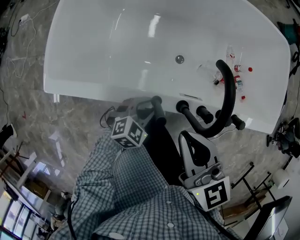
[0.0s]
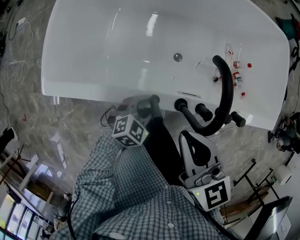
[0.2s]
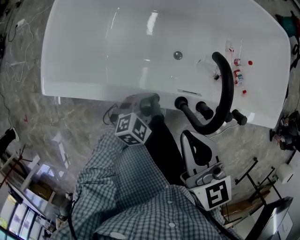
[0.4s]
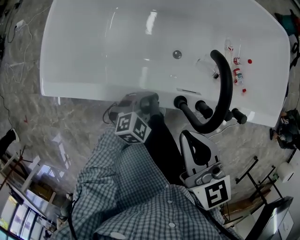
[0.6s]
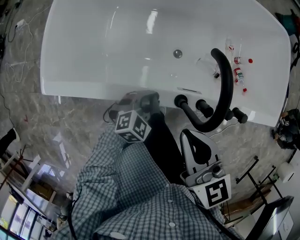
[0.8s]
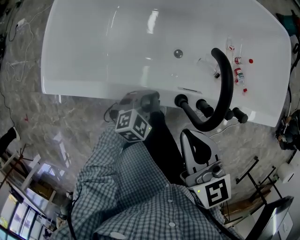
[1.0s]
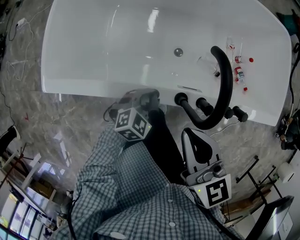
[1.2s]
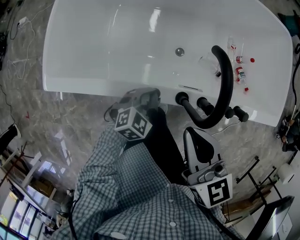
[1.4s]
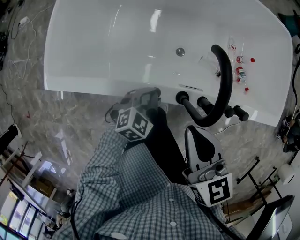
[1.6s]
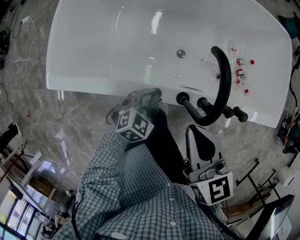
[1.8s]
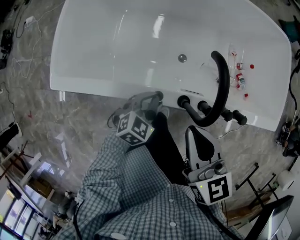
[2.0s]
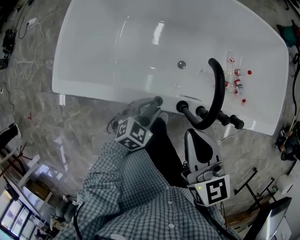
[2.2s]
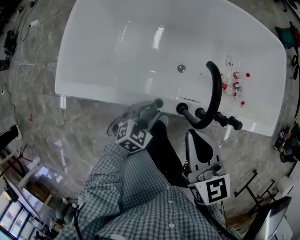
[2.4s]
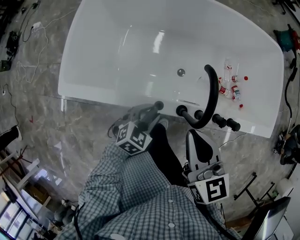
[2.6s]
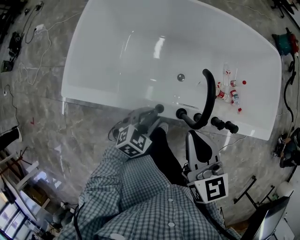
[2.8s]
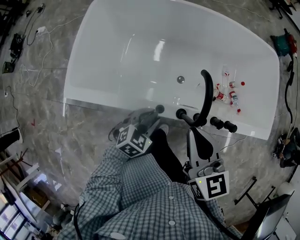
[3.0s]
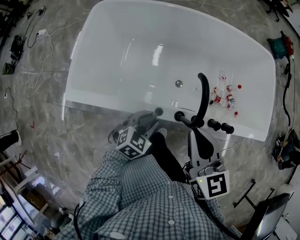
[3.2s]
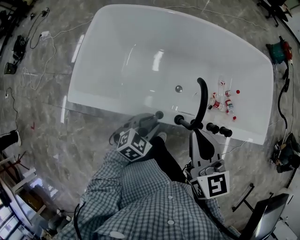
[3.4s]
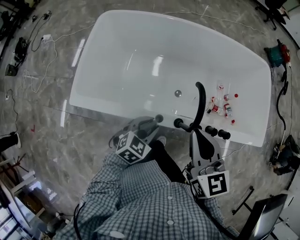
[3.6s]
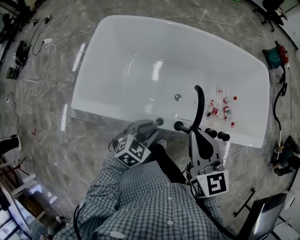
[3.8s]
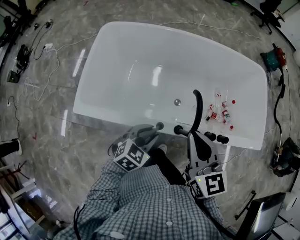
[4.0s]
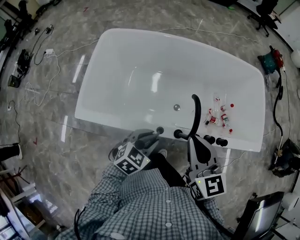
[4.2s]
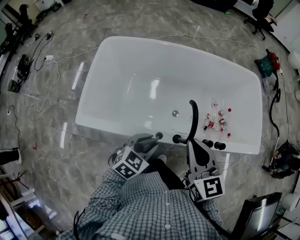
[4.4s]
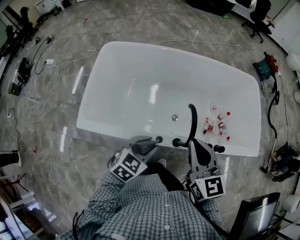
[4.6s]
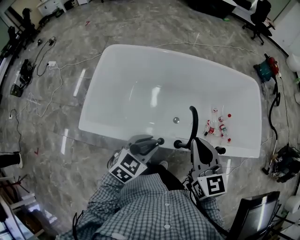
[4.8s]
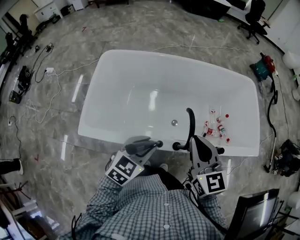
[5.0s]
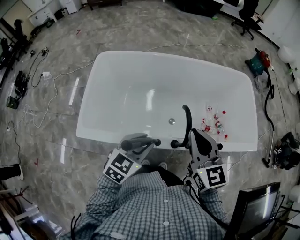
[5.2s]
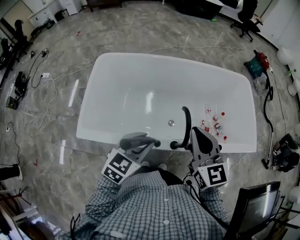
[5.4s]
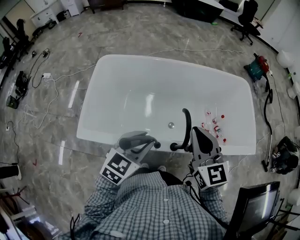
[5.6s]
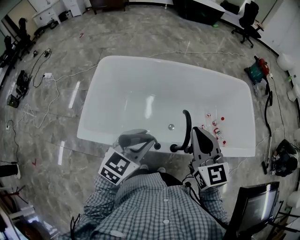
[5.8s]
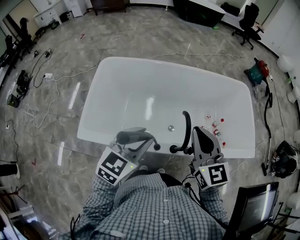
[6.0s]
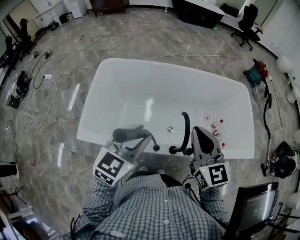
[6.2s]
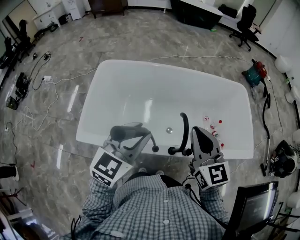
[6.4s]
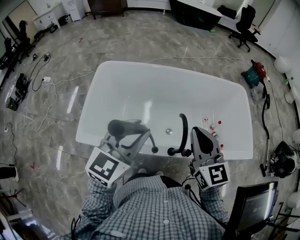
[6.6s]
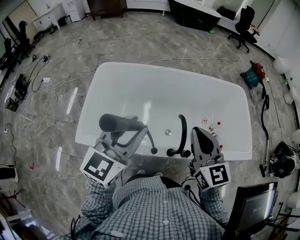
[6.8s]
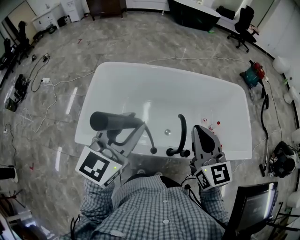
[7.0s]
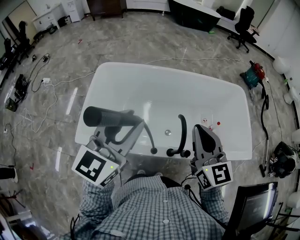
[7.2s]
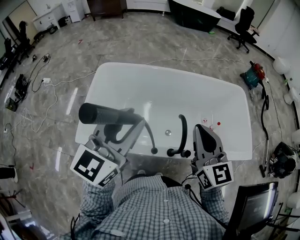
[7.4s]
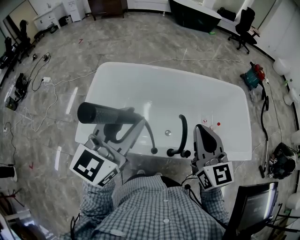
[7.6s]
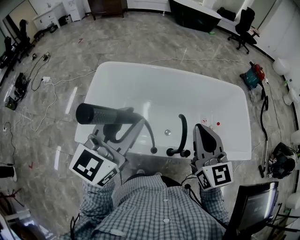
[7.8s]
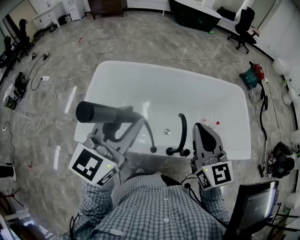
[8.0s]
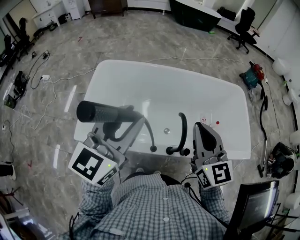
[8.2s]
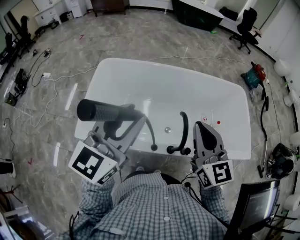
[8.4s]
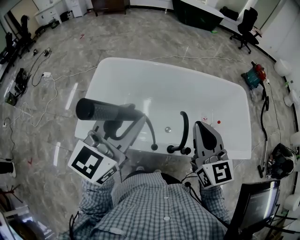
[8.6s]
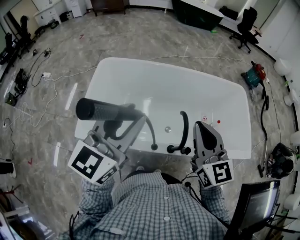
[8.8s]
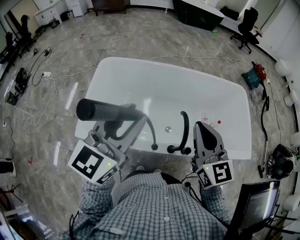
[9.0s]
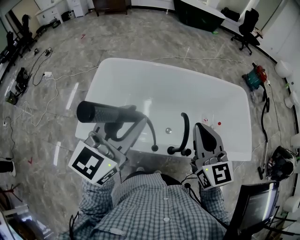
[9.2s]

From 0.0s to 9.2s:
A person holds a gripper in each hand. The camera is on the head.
From 0.0s to 1.6s: The grippers move only a little.
From 1.6s to 3.0s: Both grippers travel together upward, some 10 cm.
From 3.0s to 4.6s: The right gripper heads upward, covering about 10 cm. Meanwhile the left gripper heads upward, covering approximately 15 cm.
From 4.6s to 6.2s: The left gripper travels upward by roughly 15 cm, and changes its angle by roughly 20 degrees; the right gripper goes some 5 cm upward.
From 6.2s to 7.6s: The left gripper shifts some 10 cm upward, and turns by approximately 20 degrees.
From 7.6s to 9.2s: The two grippers keep their place.

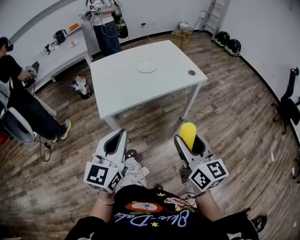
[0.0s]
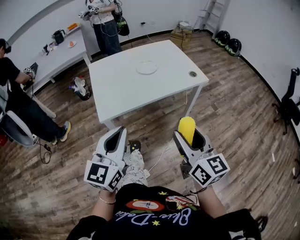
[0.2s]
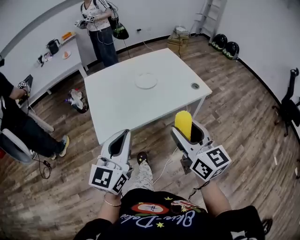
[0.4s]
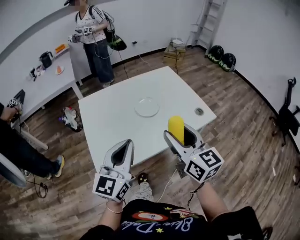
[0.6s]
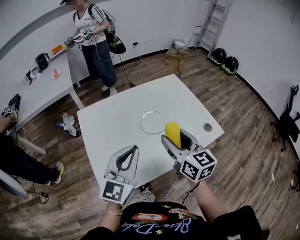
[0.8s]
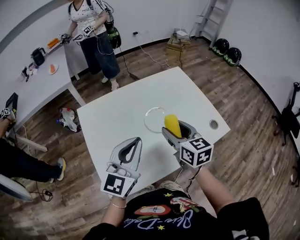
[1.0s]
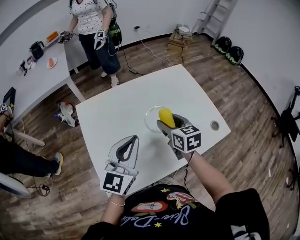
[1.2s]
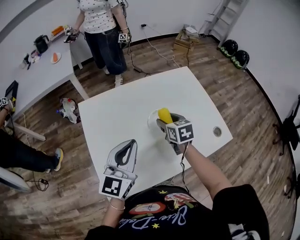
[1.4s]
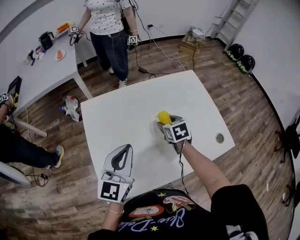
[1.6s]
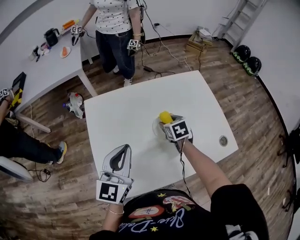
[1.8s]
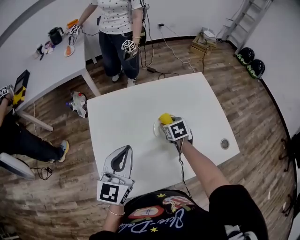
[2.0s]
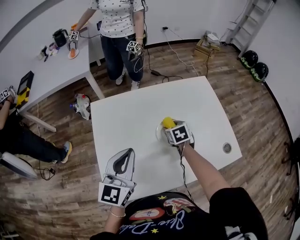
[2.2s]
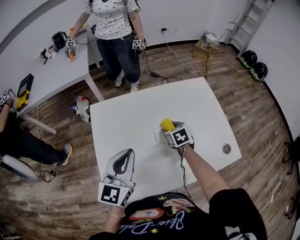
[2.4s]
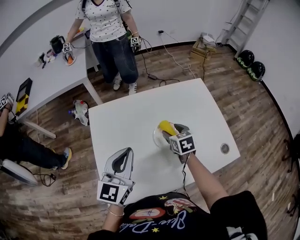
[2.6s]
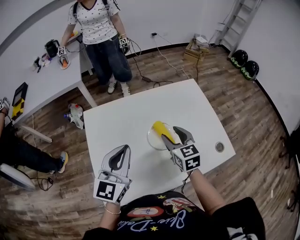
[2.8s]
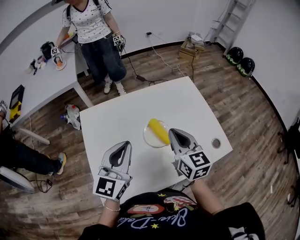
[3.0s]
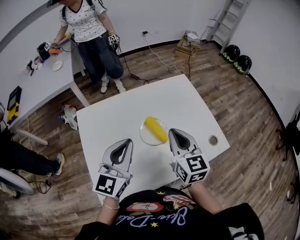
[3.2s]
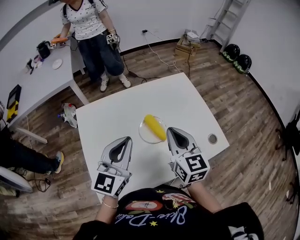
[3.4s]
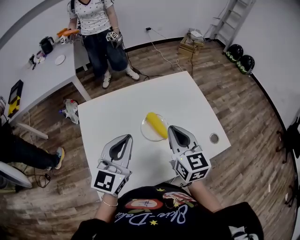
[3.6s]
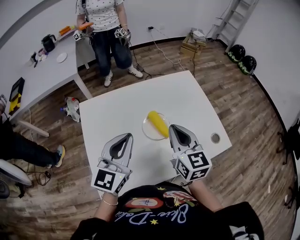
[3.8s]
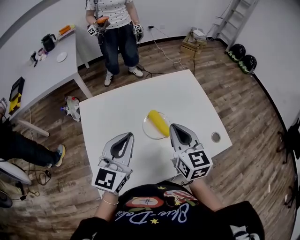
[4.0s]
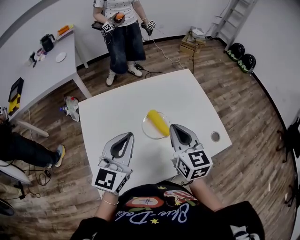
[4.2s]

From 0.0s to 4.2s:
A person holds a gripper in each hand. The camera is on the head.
From 0.0s to 1.4s: The pair of grippers is taken forward, approximately 60 cm. The right gripper tilts its fingers roughly 40 degrees downward.
From 2.8s to 4.2s: The right gripper goes roughly 10 cm upward and backward, and closes up.

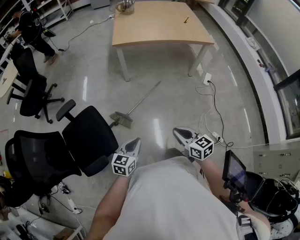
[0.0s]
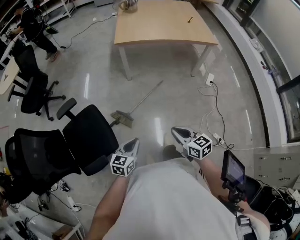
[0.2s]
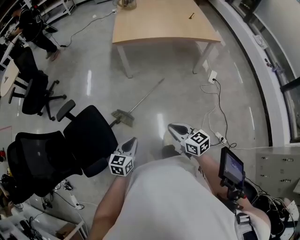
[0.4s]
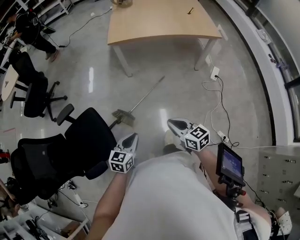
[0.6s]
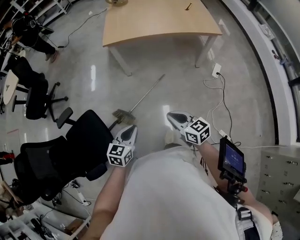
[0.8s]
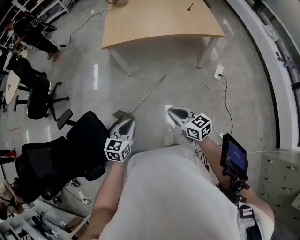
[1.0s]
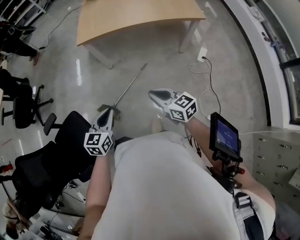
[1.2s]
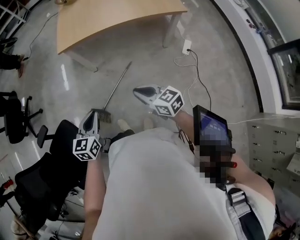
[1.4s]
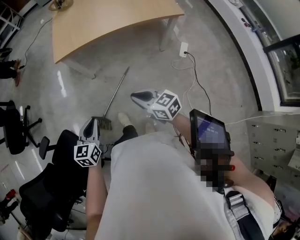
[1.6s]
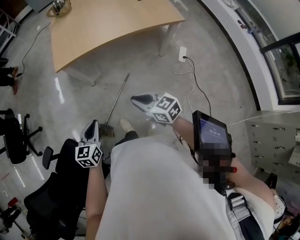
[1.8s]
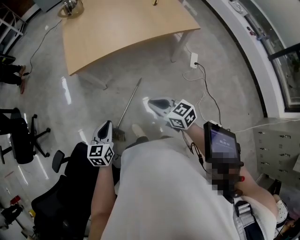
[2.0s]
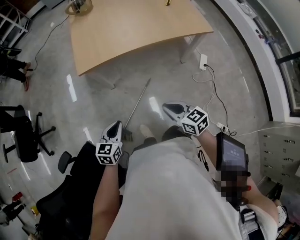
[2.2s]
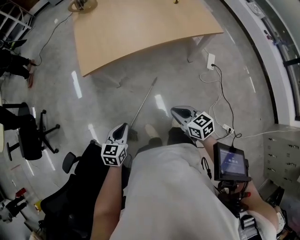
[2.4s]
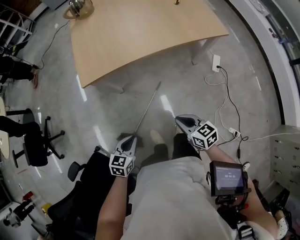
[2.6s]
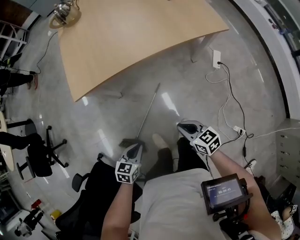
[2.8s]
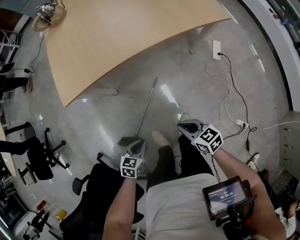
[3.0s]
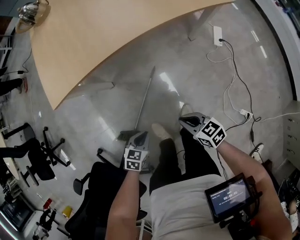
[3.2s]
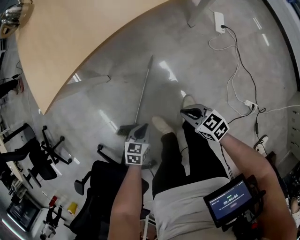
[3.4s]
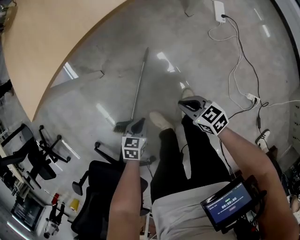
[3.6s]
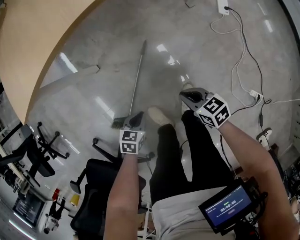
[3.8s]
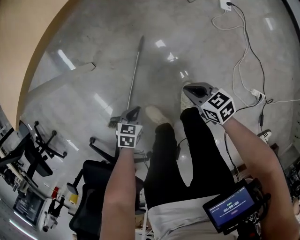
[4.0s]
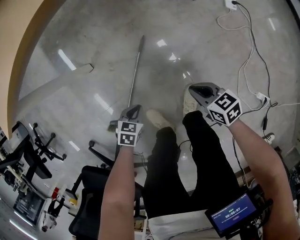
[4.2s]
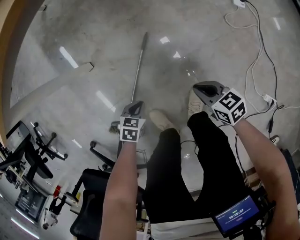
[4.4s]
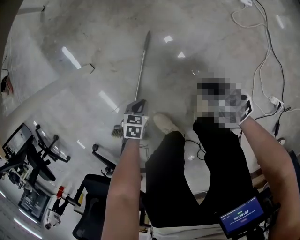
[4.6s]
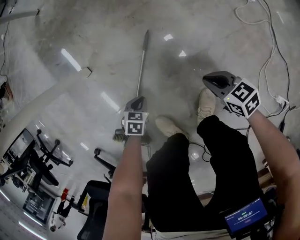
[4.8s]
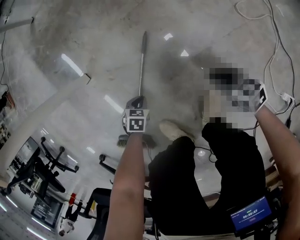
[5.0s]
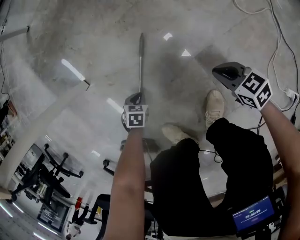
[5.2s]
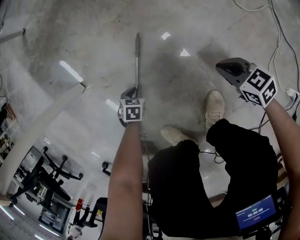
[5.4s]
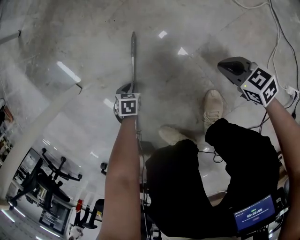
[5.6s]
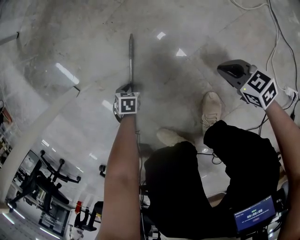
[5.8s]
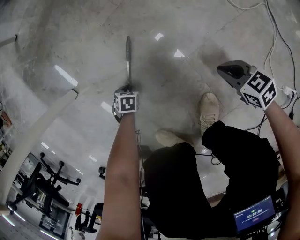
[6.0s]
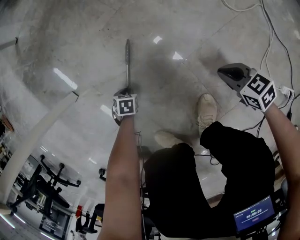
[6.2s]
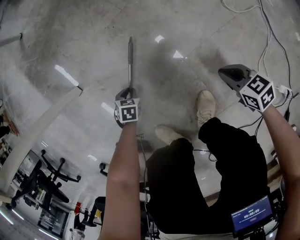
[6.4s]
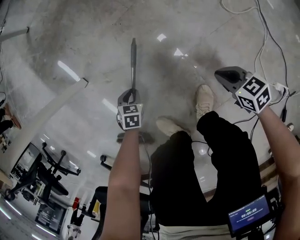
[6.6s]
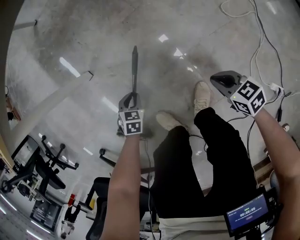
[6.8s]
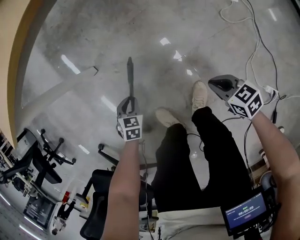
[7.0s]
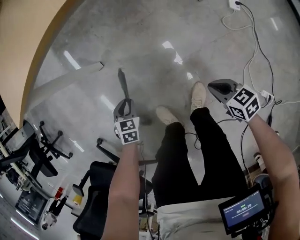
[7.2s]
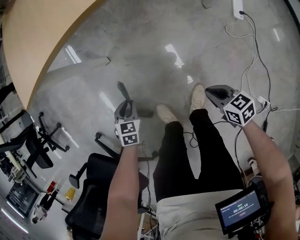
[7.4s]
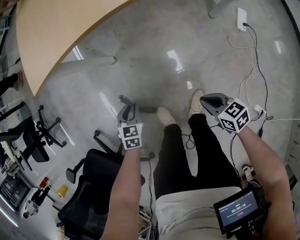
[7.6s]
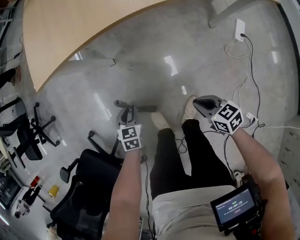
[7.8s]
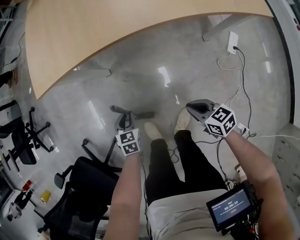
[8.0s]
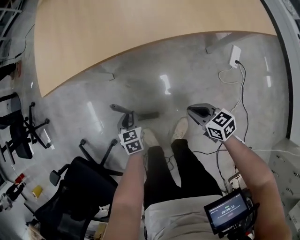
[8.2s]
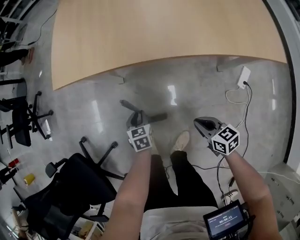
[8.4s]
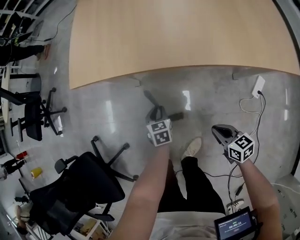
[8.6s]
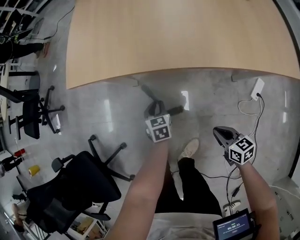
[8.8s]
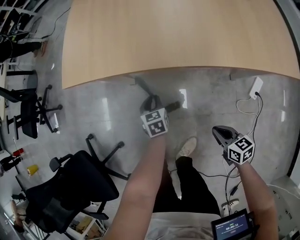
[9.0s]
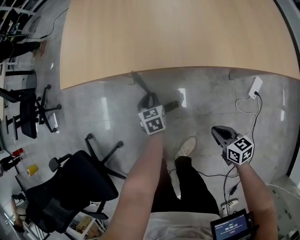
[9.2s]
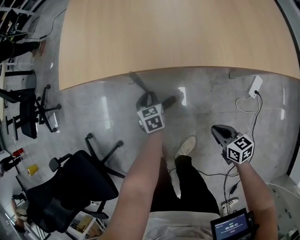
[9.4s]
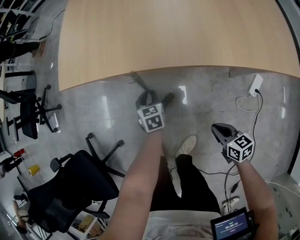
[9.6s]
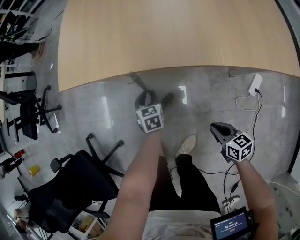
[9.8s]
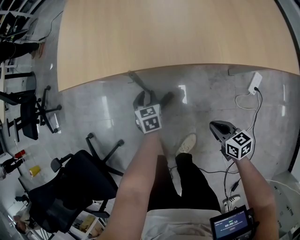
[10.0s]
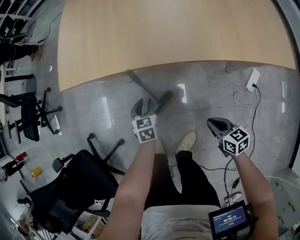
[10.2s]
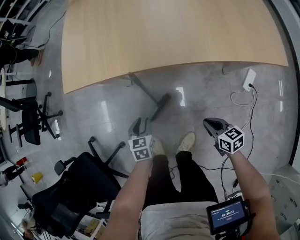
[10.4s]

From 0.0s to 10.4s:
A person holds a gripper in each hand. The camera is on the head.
From 0.0s to 1.4s: The right gripper goes some 30 cm forward and to the right. Meanwhile the left gripper heads forward, covering some 25 cm.
From 1.4s to 3.0s: The grippers both shift downward and forward by approximately 25 cm. The right gripper turns by approximately 20 degrees; the left gripper changes its angle by roughly 40 degrees.
From 3.0s to 4.4s: Both grippers move downward, some 35 cm. The left gripper swivels approximately 20 degrees.
From 4.4s to 6.0s: The right gripper moves downward, some 15 cm; the left gripper shifts roughly 25 cm downward.
From 6.0s to 7.4s: Both grippers move upward, approximately 35 cm. The left gripper swivels approximately 30 degrees.
From 7.4s to 9.0s: The right gripper heads forward, to the right and upward, covering roughly 15 cm; the left gripper goes approximately 20 cm to the right, forward and upward, and swivels about 40 degrees.
From 9.0s to 10.4s: The left gripper goes approximately 10 cm to the left and backward.
